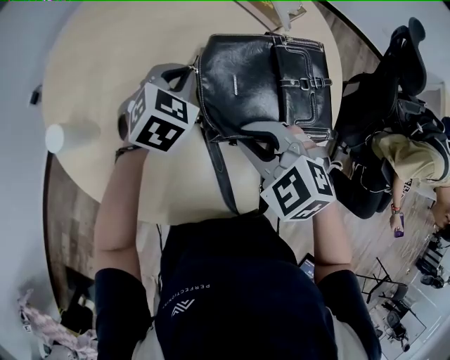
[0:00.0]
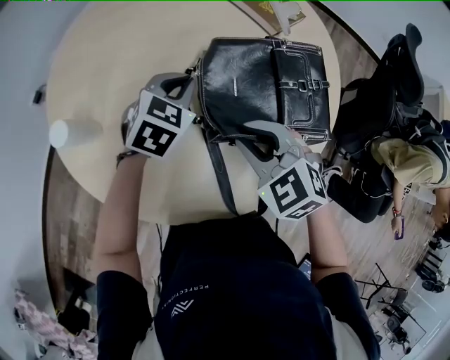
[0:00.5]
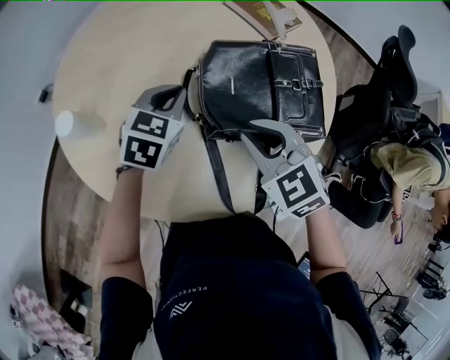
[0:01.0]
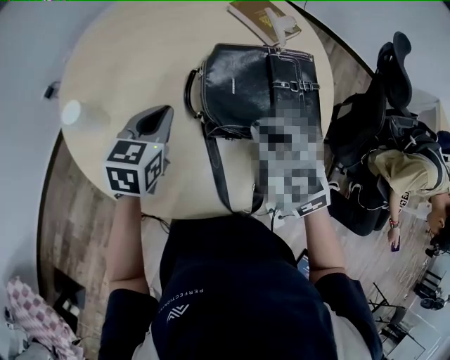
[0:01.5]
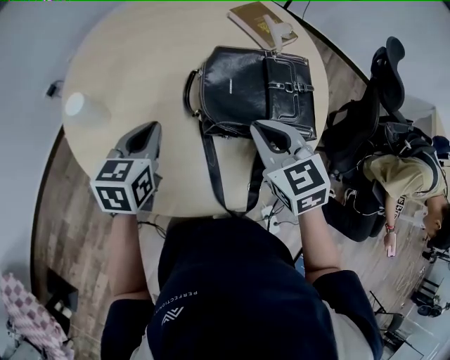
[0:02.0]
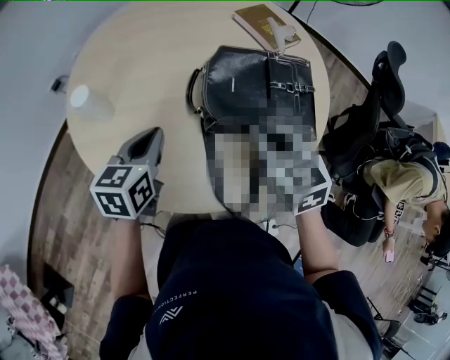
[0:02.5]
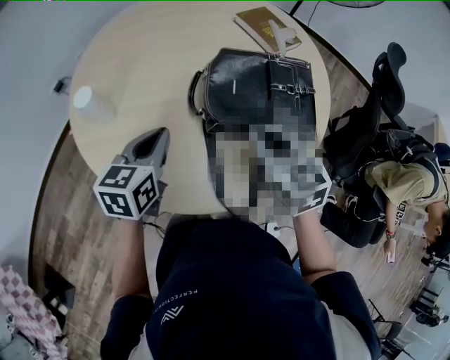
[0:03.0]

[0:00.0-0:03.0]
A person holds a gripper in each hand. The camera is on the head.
0:00.0 to 0:01.5: The right gripper shifts by about 5 cm, and swivels about 20 degrees. The left gripper goes some 10 cm backward and to the left, and rotates roughly 30 degrees.
0:01.5 to 0:03.0: The left gripper is displaced backward by roughly 5 cm.

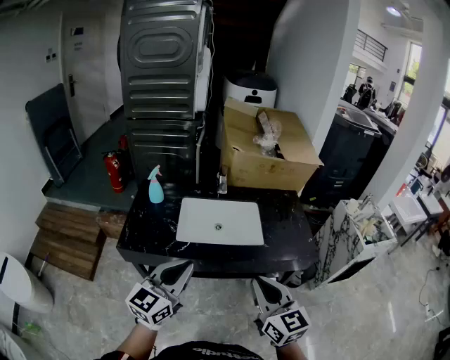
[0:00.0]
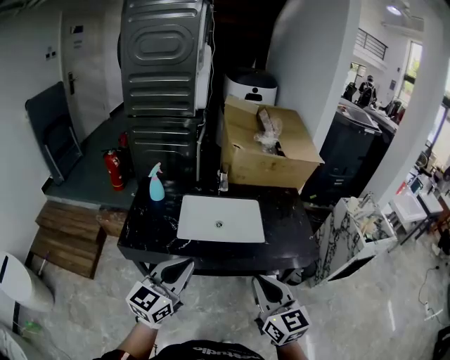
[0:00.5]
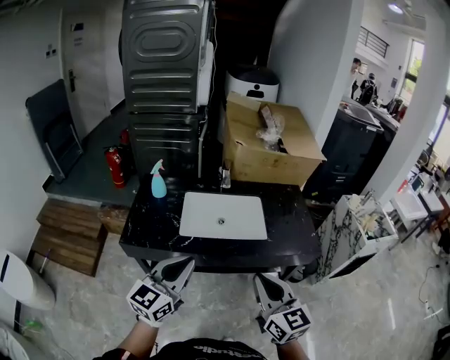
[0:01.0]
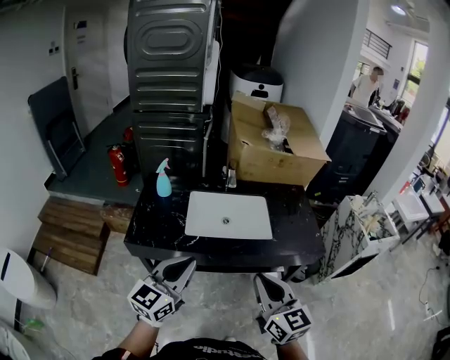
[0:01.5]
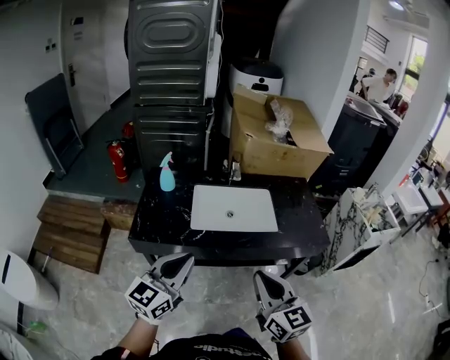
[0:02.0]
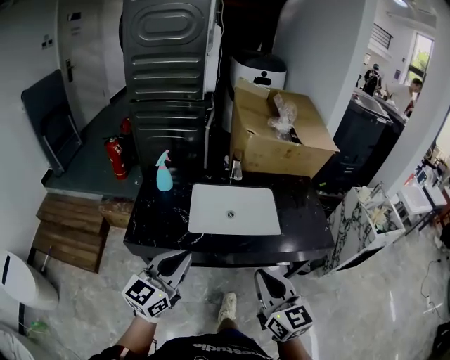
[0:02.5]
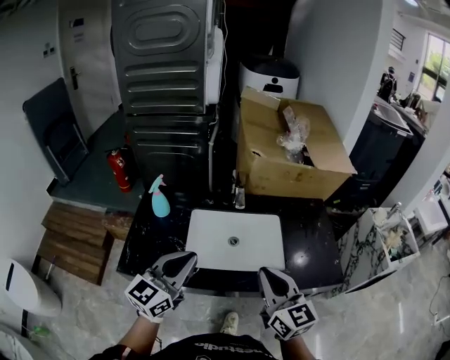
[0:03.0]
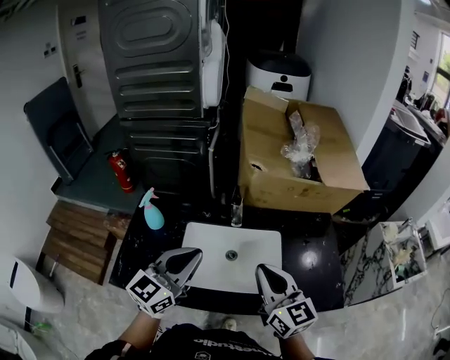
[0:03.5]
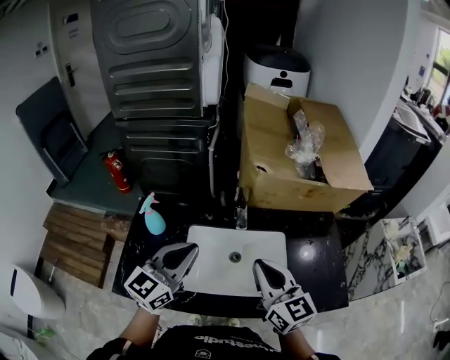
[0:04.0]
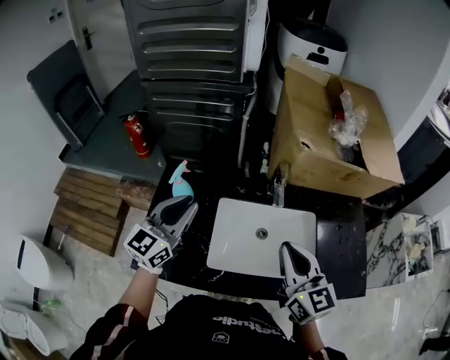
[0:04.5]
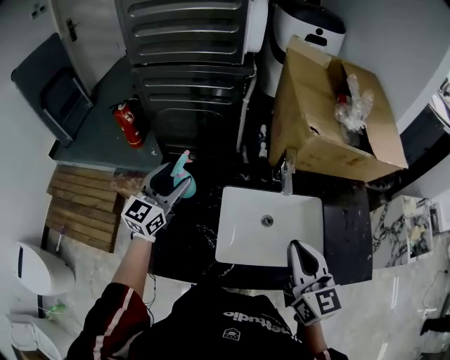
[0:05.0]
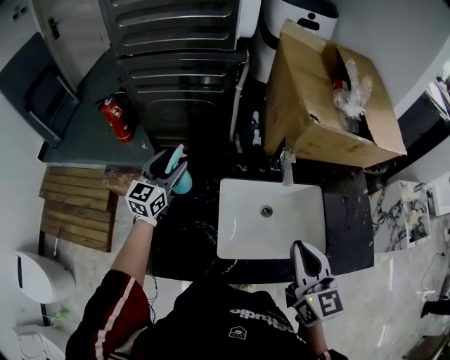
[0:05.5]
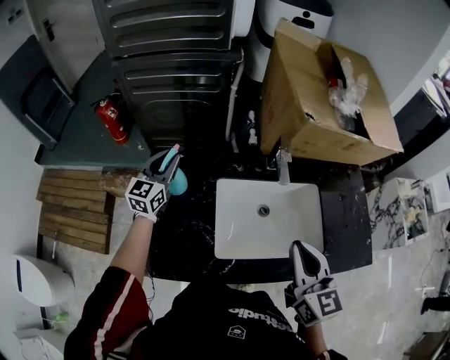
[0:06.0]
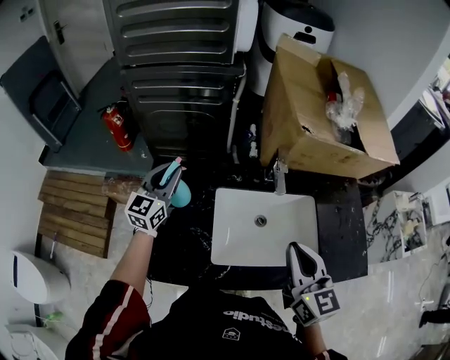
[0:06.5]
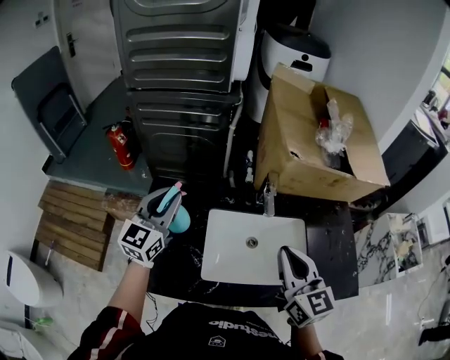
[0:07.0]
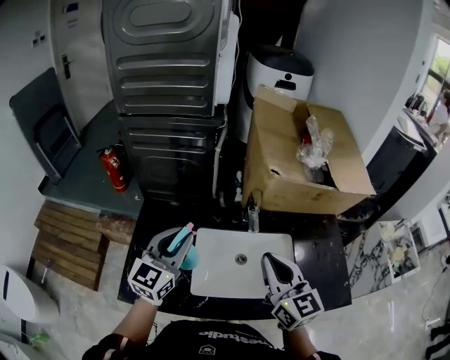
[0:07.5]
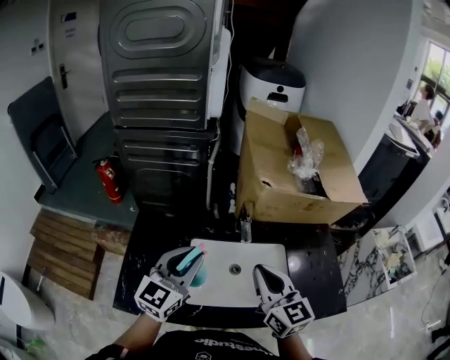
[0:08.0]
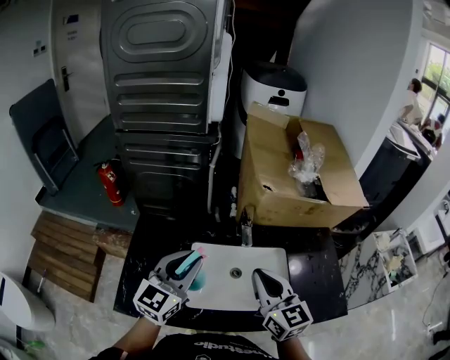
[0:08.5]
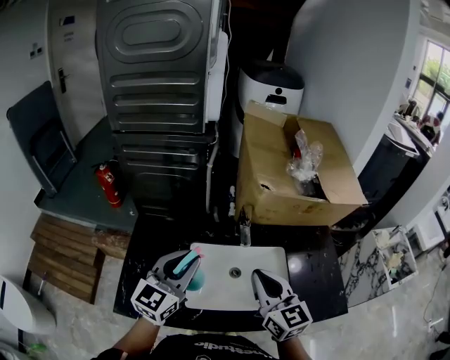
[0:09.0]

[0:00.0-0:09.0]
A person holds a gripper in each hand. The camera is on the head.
0:00.0 to 0:02.0: The two grippers go about 5 cm to the left.
0:02.0 to 0:04.5: Both grippers travel together forward, some 40 cm.
0:04.5 to 0:07.0: The left gripper heads forward, covering some 5 cm, and opens, then closes again.
0:07.0 to 0:09.0: The left gripper is displaced to the right and backward by some 15 cm.

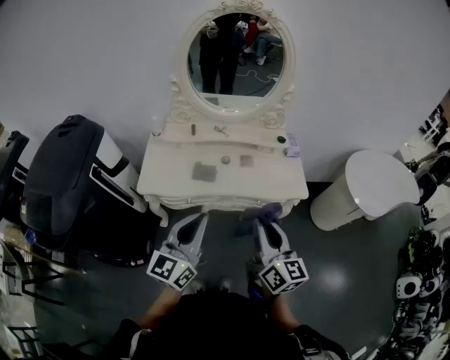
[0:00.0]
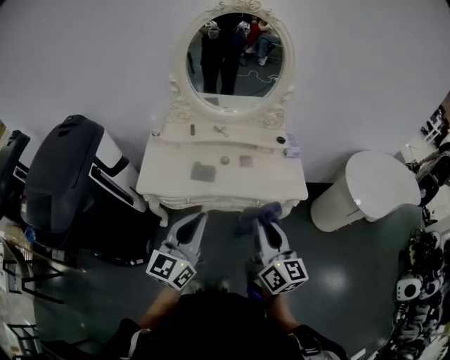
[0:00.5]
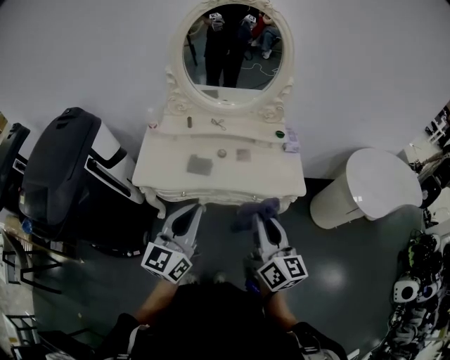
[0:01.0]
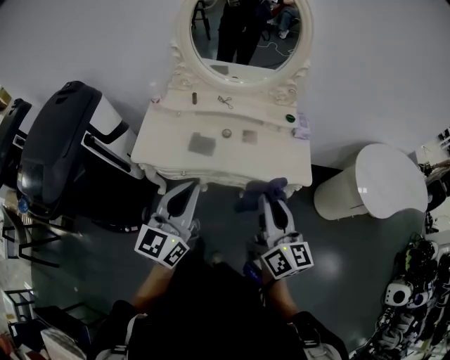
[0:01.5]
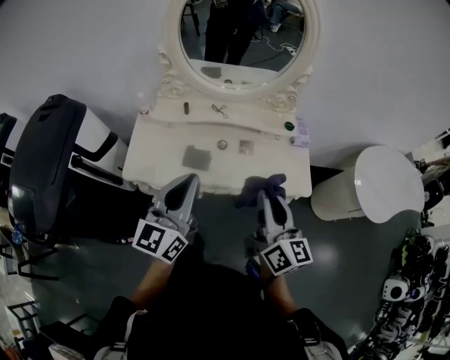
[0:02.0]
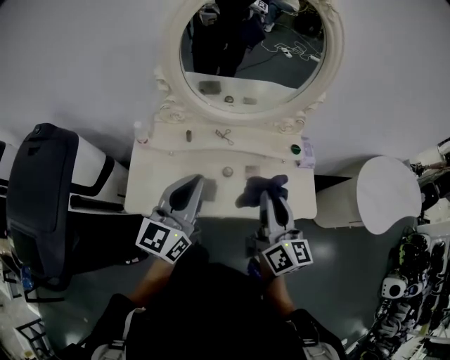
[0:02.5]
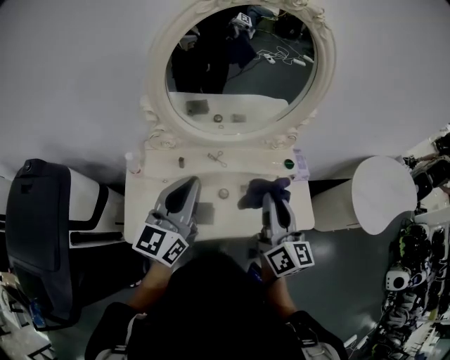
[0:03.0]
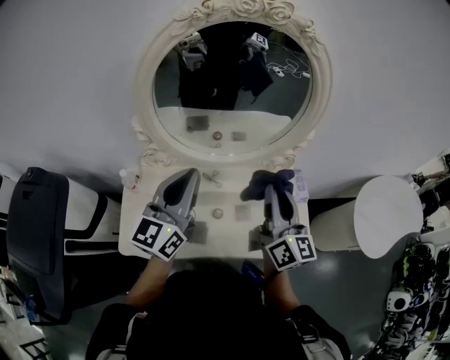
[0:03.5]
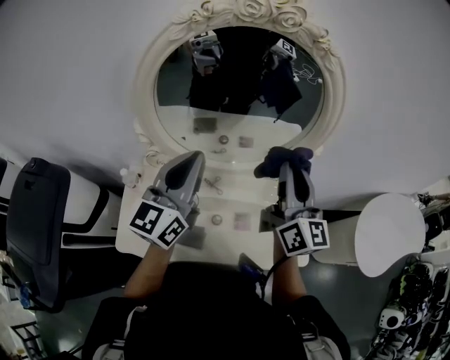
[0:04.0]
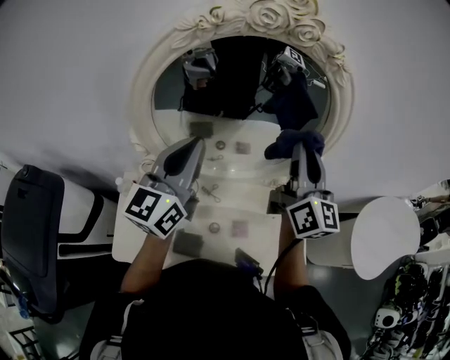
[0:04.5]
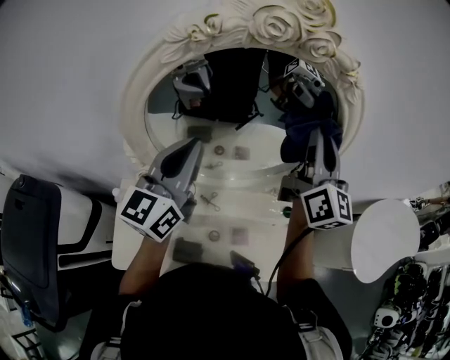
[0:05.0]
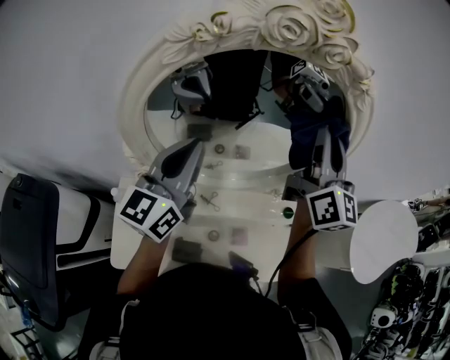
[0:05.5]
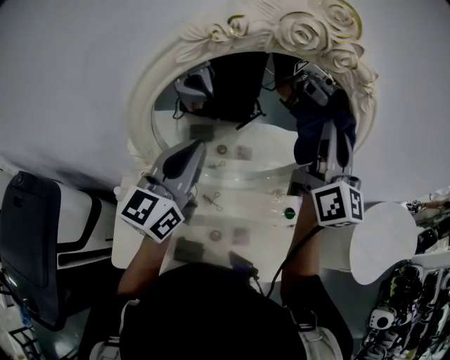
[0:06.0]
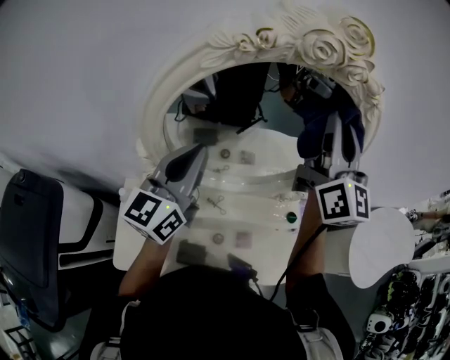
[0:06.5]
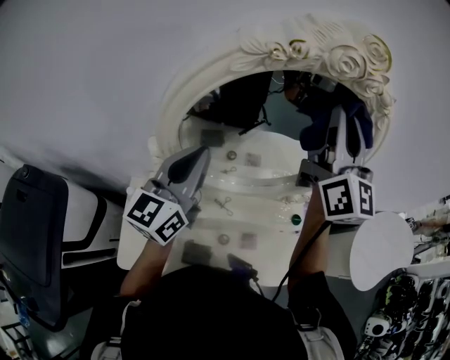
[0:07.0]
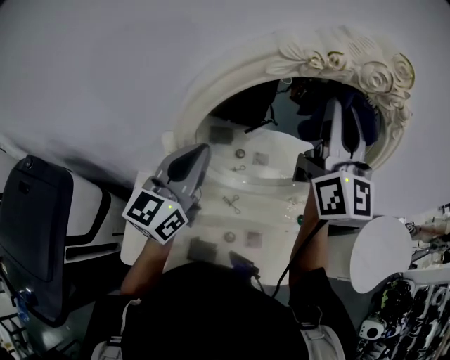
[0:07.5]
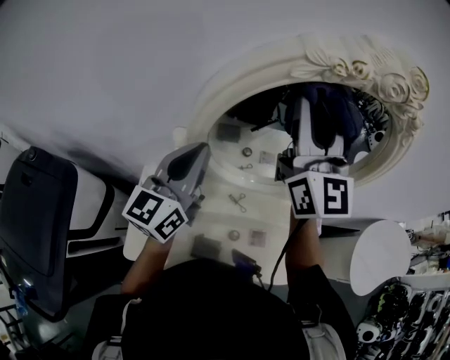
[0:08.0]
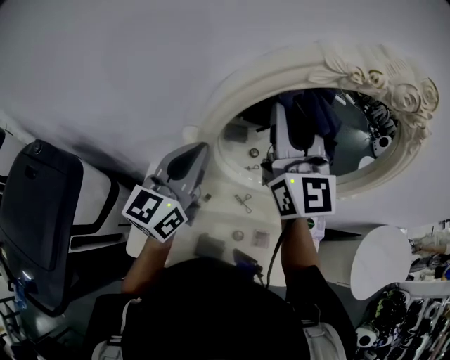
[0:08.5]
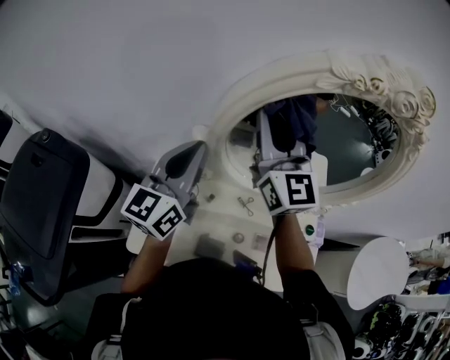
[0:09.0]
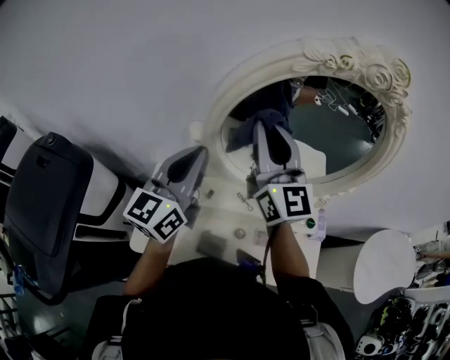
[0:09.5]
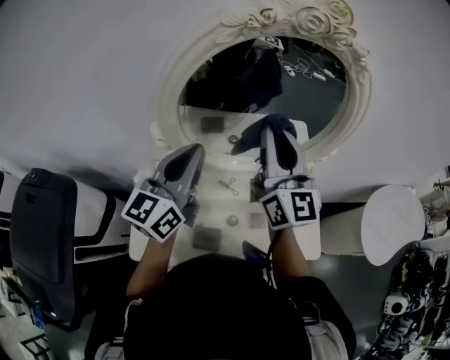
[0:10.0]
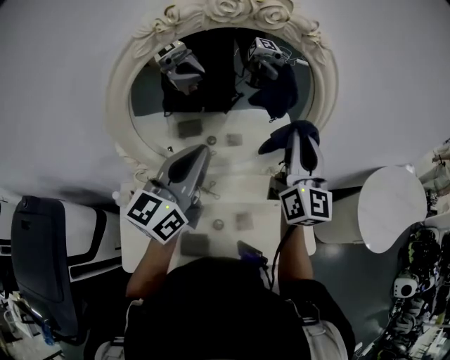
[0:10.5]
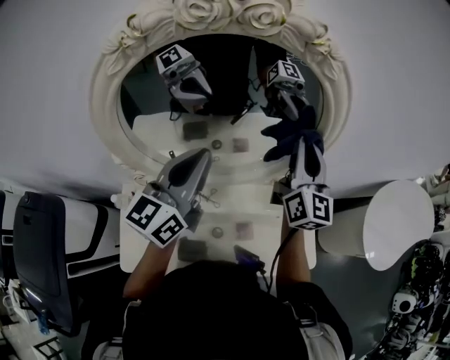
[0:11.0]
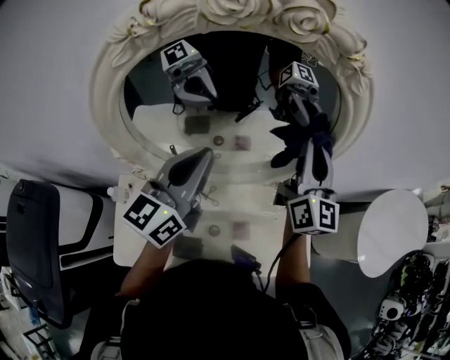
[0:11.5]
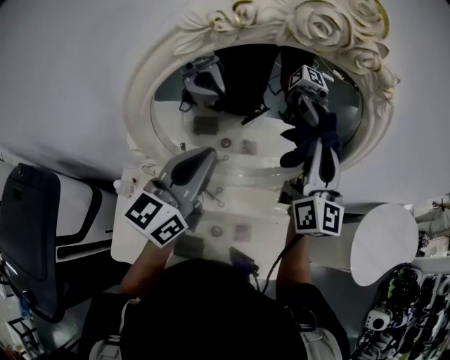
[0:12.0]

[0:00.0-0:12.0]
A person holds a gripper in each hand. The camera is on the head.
0:00.0 to 0:02.0: Both grippers travel together forward, about 15 cm.
0:02.0 to 0:04.0: The grippers both shift forward by roughly 35 cm.
0:04.0 to 0:06.0: The left gripper shifts about 10 cm forward. Meanwhile the right gripper moves forward and upward, some 15 cm.
0:06.0 to 0:08.0: The right gripper moves to the left, some 25 cm, and turns by some 20 degrees, while the left gripper goes some 10 cm to the left.
0:08.0 to 0:10.0: The left gripper shifts some 10 cm to the right and backward. Meanwhile the right gripper shifts some 15 cm downward, backward and to the right.
0:10.0 to 0:12.0: The right gripper heads forward and to the right, covering roughly 20 cm. Meanwhile the left gripper goes some 10 cm forward and to the right.

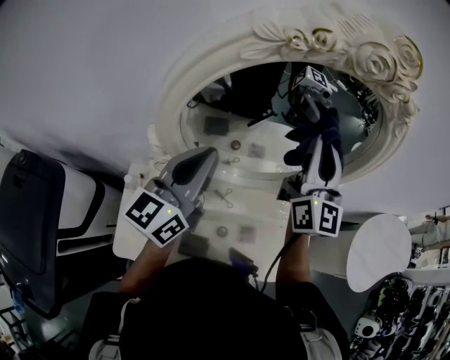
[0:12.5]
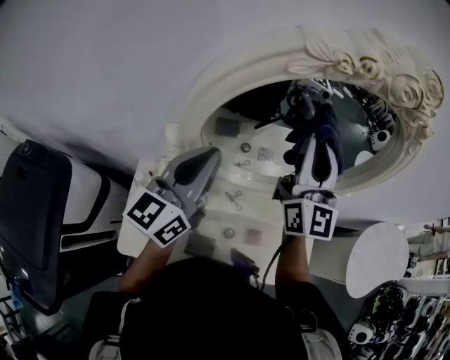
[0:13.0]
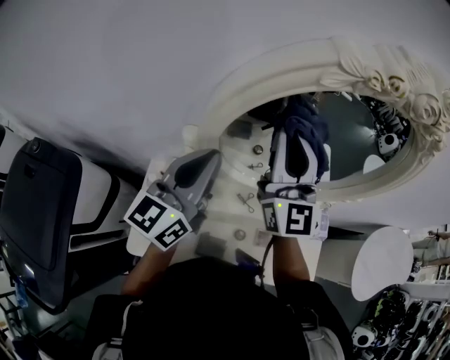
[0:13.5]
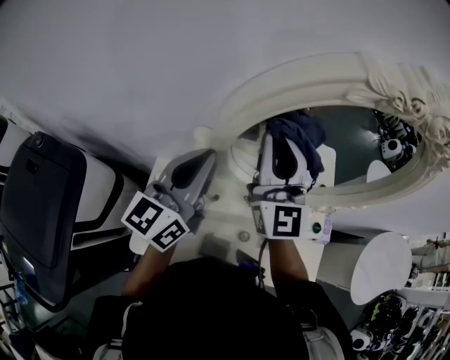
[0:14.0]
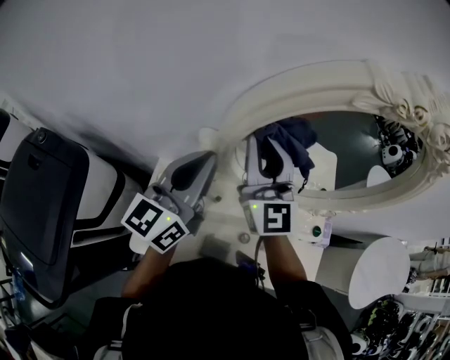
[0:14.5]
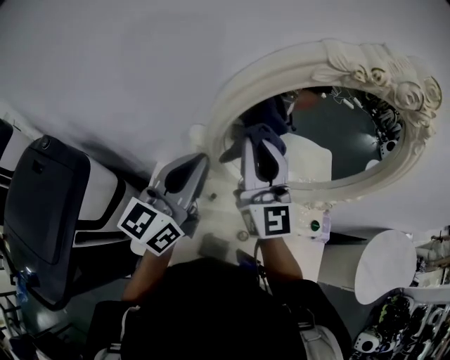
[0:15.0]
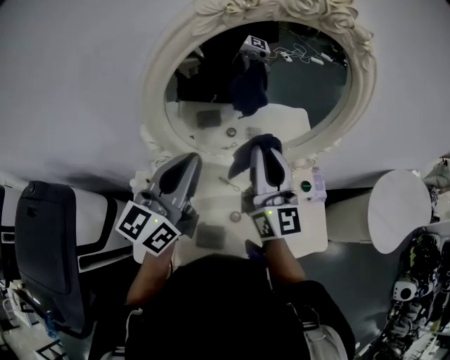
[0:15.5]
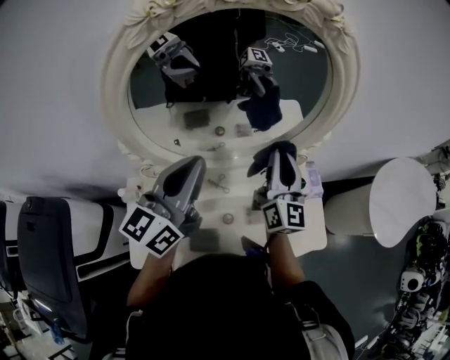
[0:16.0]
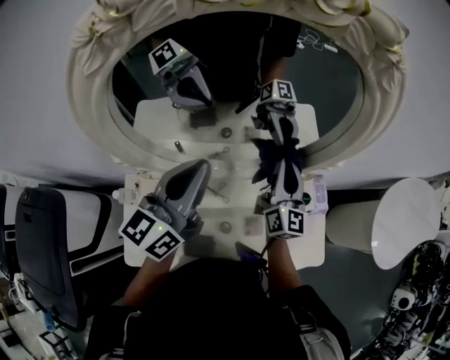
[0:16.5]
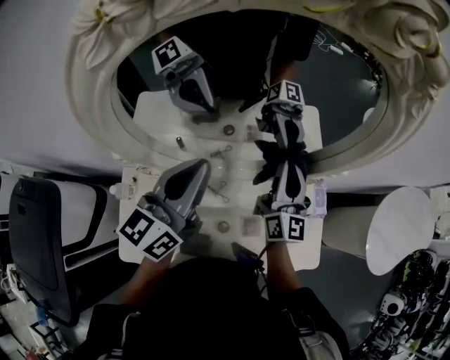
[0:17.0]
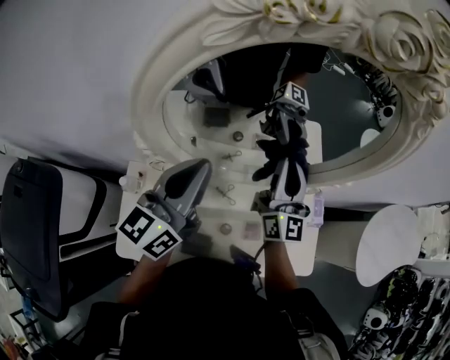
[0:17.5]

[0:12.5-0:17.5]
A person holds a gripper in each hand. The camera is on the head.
0:12.5 to 0:15.0: The right gripper heads to the left, covering roughly 25 cm, and rotates about 20 degrees, while the left gripper heads to the left, covering roughly 10 cm.
0:15.0 to 0:17.5: The right gripper ends up approximately 25 cm from where it was, and turns by about 30 degrees. The left gripper shifts by some 15 cm.
